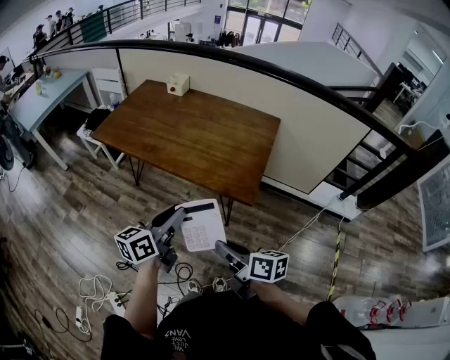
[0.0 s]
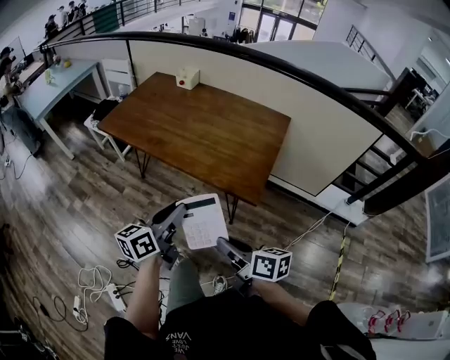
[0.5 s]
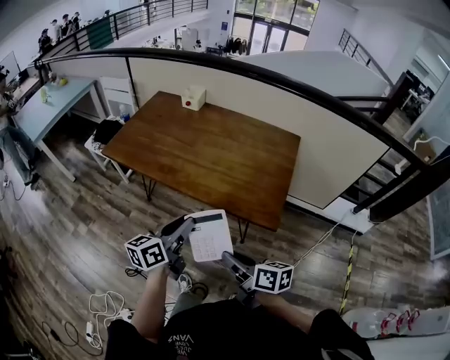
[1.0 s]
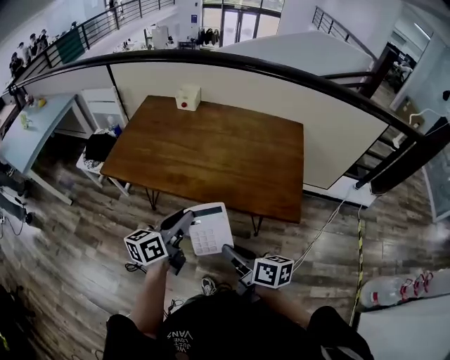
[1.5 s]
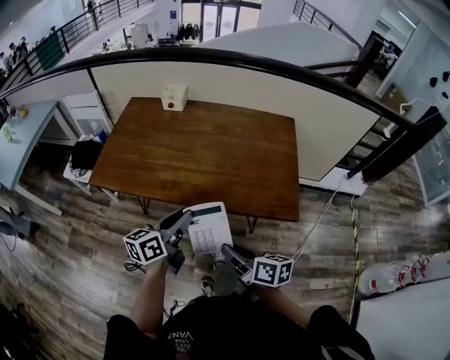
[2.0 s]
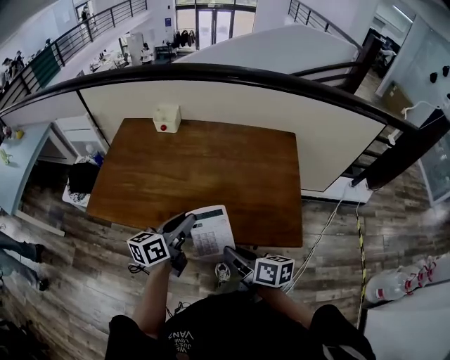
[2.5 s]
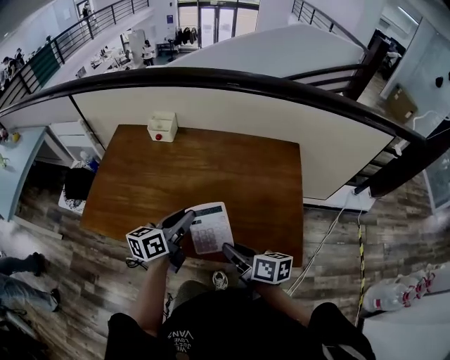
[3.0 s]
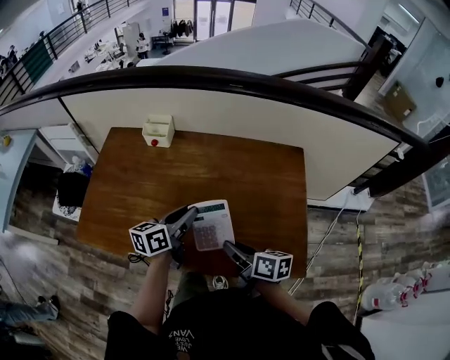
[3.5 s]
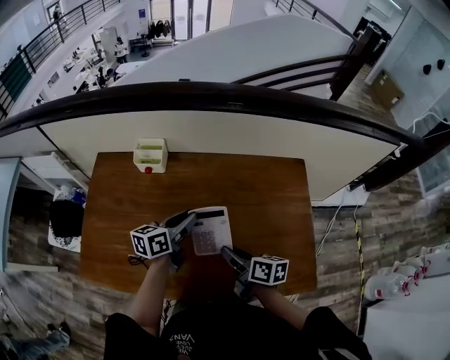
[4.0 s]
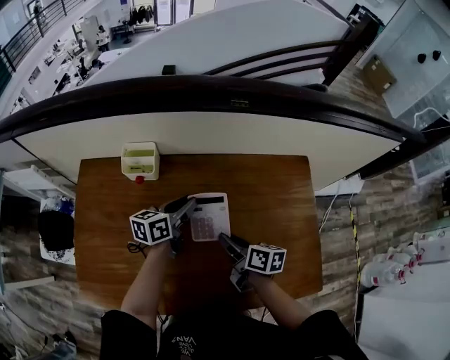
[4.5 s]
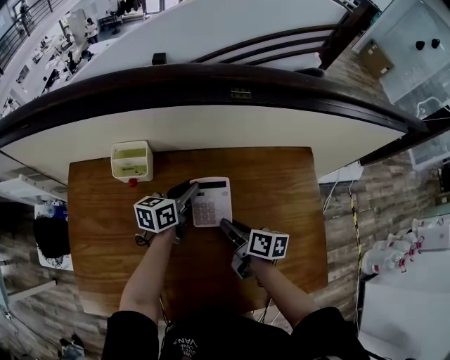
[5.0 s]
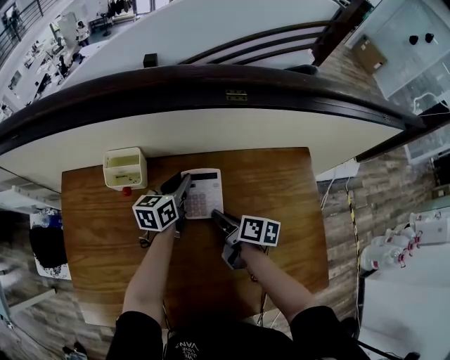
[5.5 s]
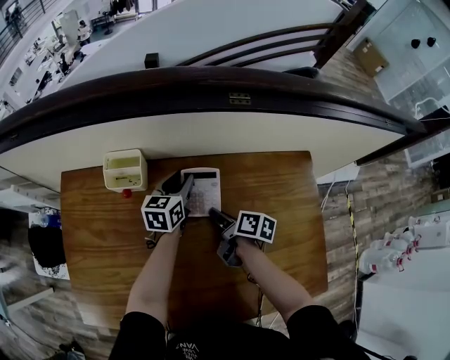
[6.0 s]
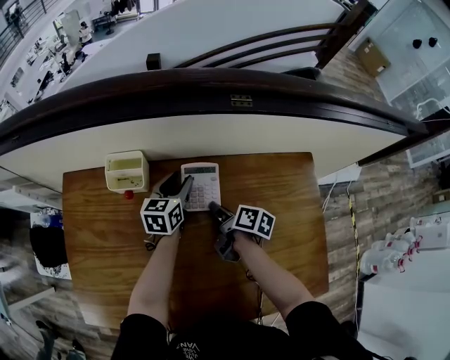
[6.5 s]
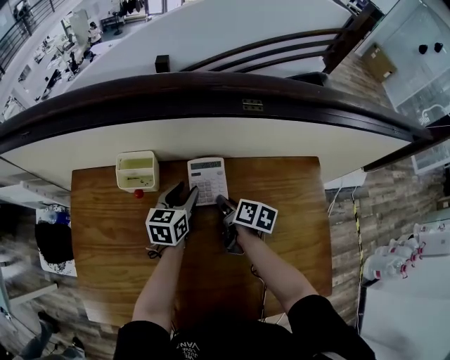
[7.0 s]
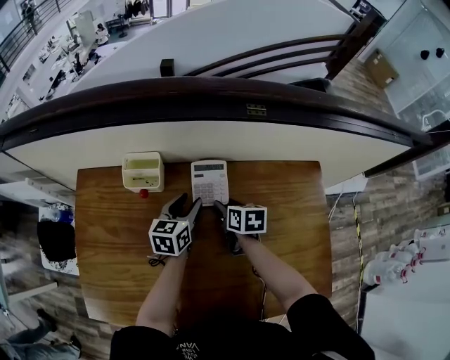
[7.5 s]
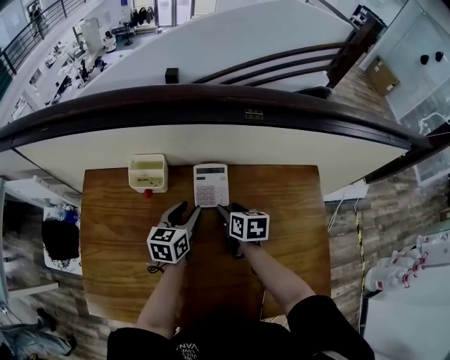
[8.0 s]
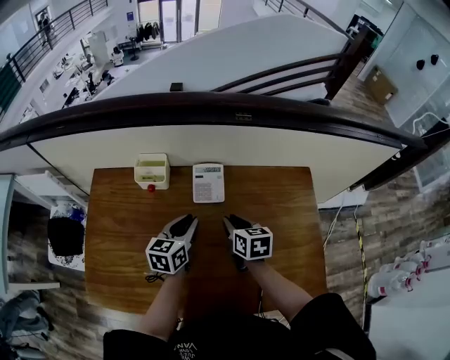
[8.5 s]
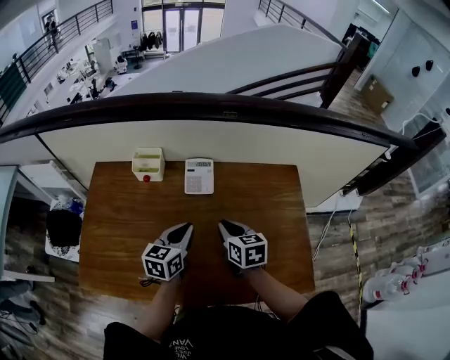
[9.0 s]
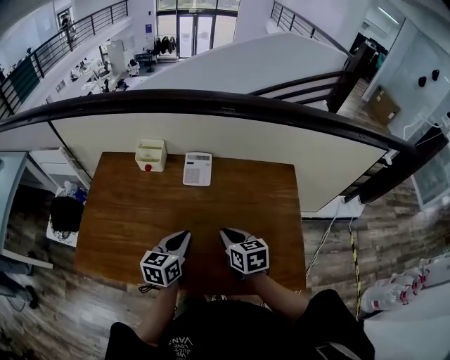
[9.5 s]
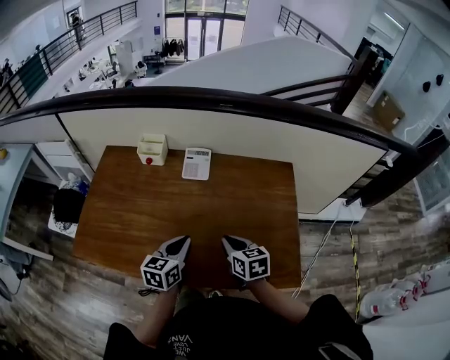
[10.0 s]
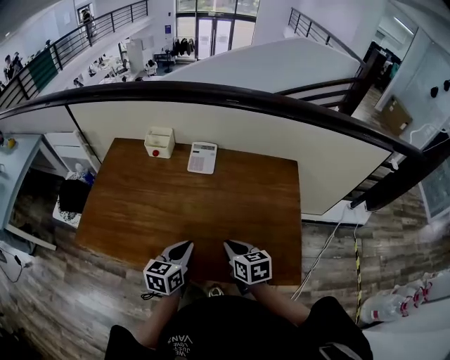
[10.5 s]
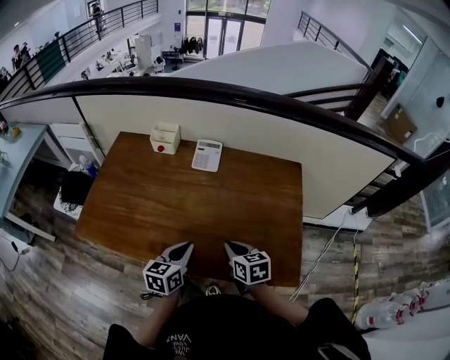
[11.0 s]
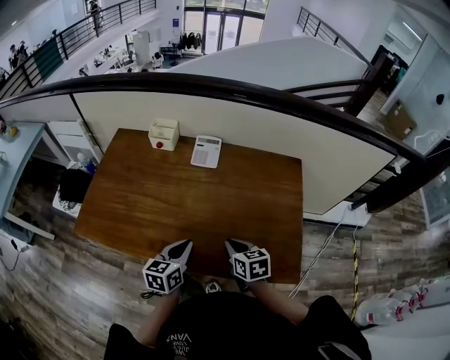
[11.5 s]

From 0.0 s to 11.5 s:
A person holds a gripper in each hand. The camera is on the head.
From 0.0 s to 2.0 s: The left gripper travels forward and to the left by approximately 25 cm; the right gripper travels to the left and forward by roughly 25 cm.
From 2.0 s to 4.0 s: The two grippers go approximately 35 cm forward.
From 4.0 s to 6.0 s: The two grippers go roughly 25 cm forward and downward. The right gripper changes its angle by approximately 20 degrees. The left gripper turns by about 20 degrees.
From 6.0 s to 7.5 s: The right gripper changes its angle by approximately 40 degrees. The left gripper shifts roughly 5 cm backward.
From 7.5 s to 9.5 s: The left gripper is displaced backward by some 25 cm, and closes up. Meanwhile the right gripper is displaced backward and upward by roughly 25 cm, swivels some 20 degrees, and closes its fingers.
From 9.5 s to 11.5 s: The grippers both shift backward by approximately 10 cm.

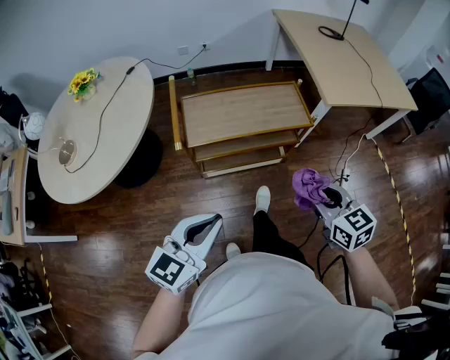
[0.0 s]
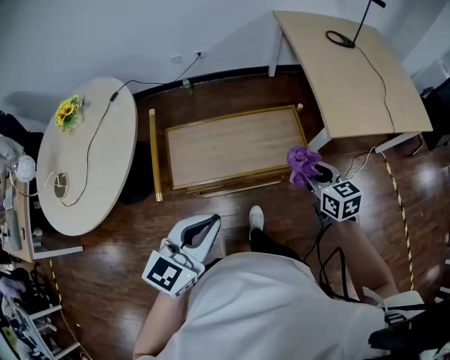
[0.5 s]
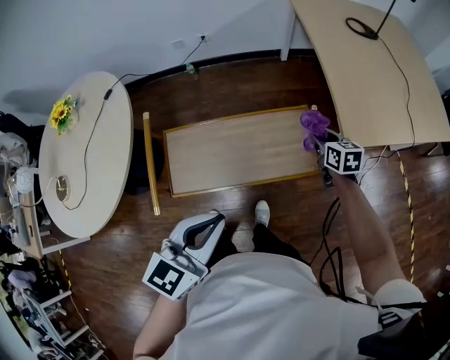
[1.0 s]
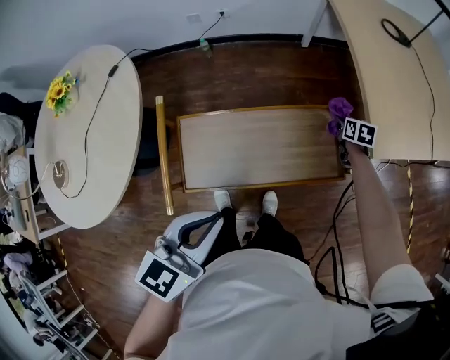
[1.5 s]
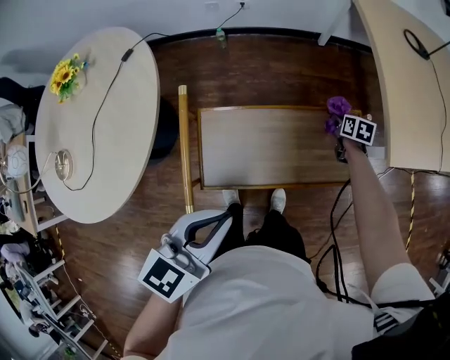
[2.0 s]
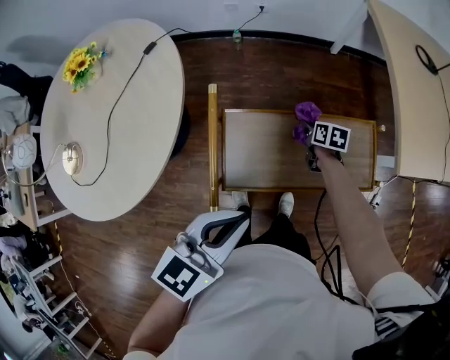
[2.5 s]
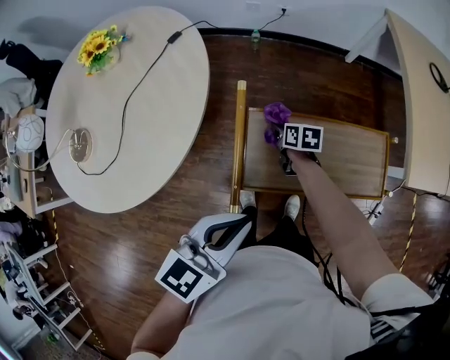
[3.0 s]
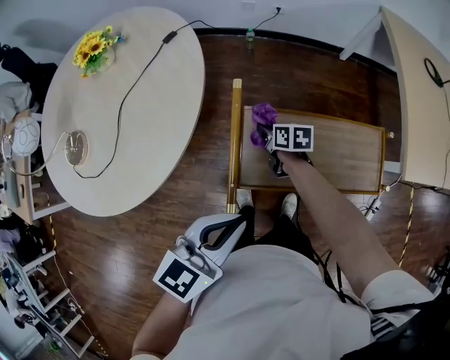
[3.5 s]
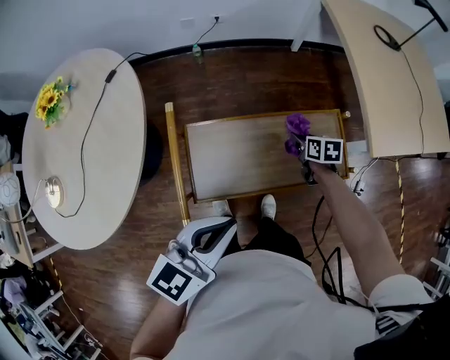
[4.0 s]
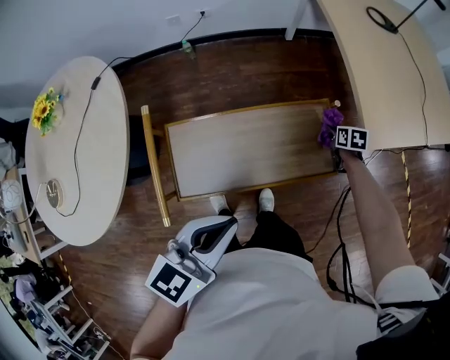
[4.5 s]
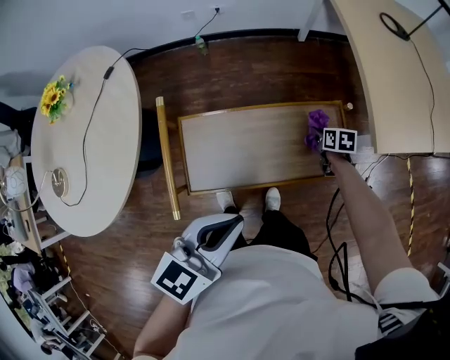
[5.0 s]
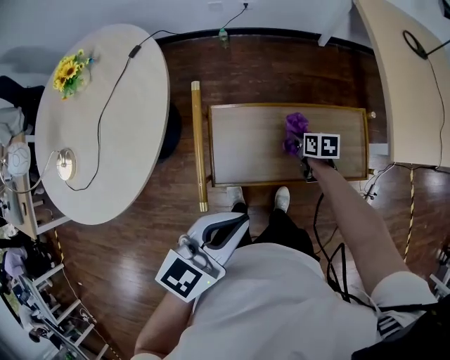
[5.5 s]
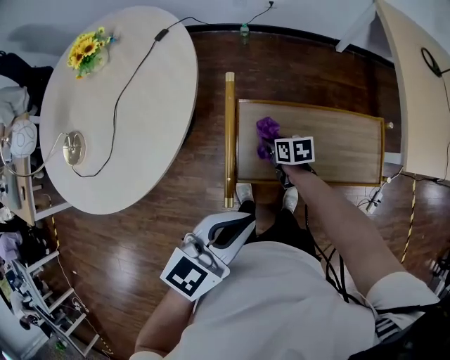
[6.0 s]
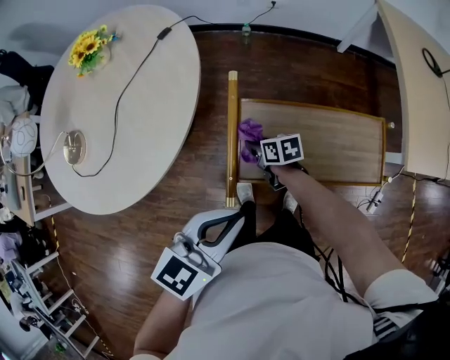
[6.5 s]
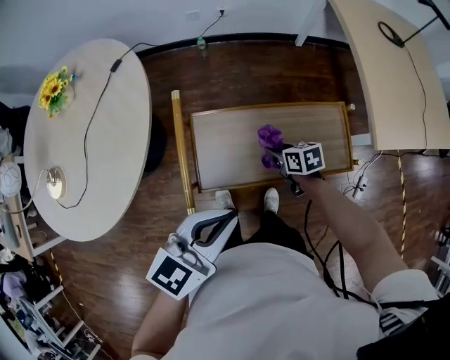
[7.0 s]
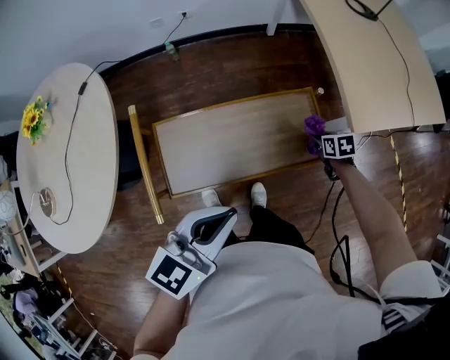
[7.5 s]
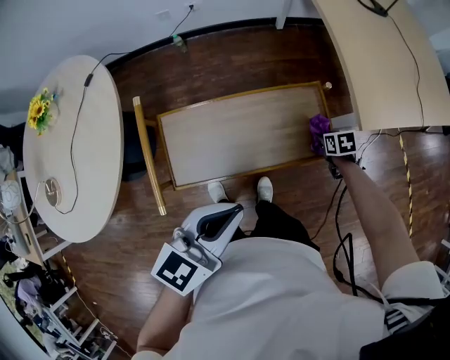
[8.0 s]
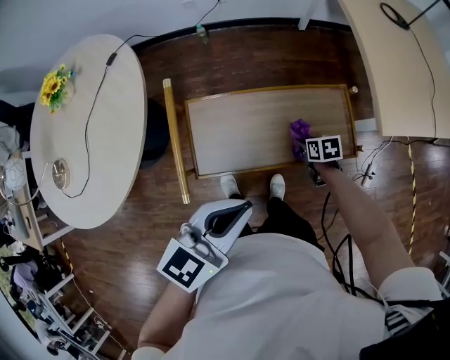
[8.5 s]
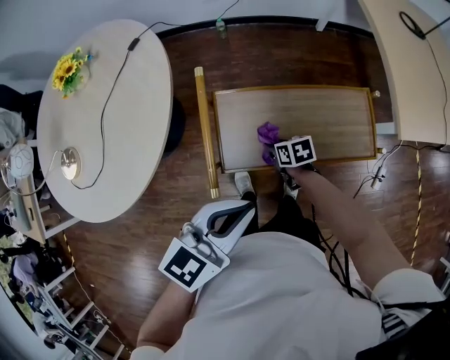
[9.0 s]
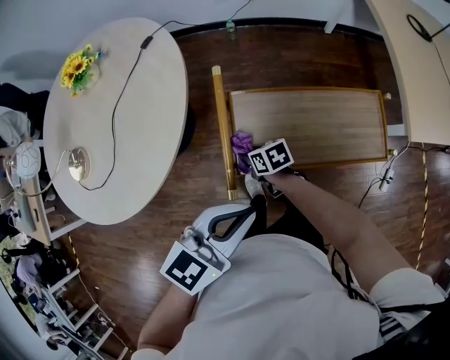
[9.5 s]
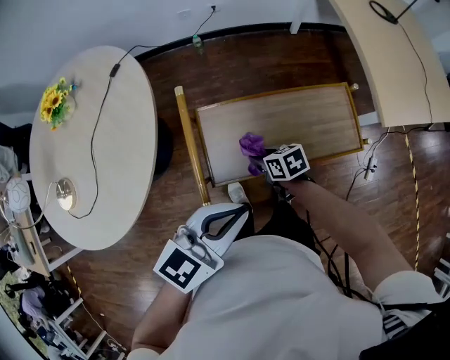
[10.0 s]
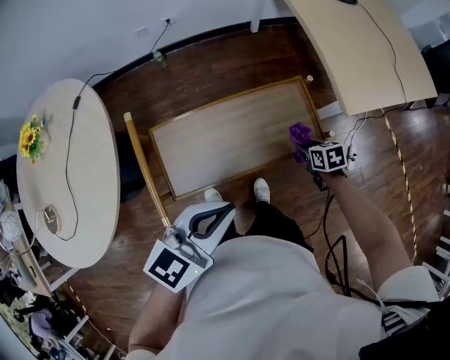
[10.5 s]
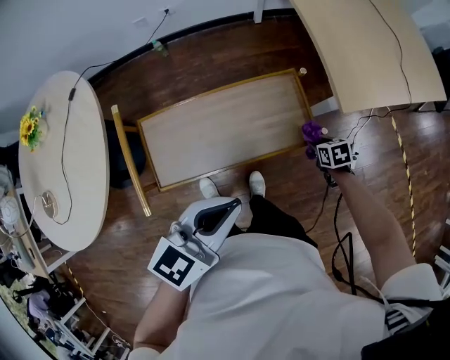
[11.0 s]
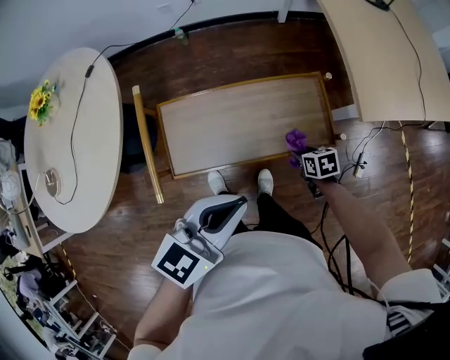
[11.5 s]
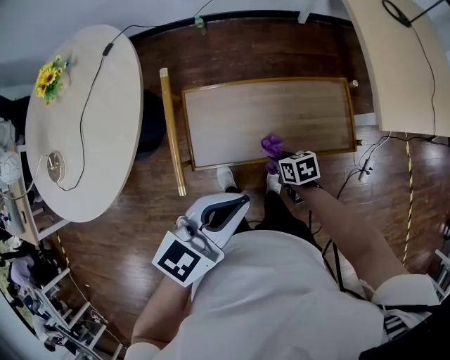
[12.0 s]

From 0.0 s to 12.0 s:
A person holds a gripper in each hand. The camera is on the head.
From 0.0 s to 2.0 s: The left gripper shifts about 30 cm forward, while the right gripper is displaced forward and downward by approximately 60 cm, and turns by about 40 degrees.
From 2.0 s to 4.0 s: The right gripper is displaced backward by about 10 cm, and reaches approximately 40 cm to the left, then returns, while the left gripper reaches approximately 10 cm to the left, then returns.
From 4.0 s to 6.0 s: The right gripper changes place by some 30 cm, and changes its angle by roughly 20 degrees. The left gripper changes place by about 10 cm.
From 6.0 s to 8.0 s: The left gripper ends up about 20 cm from where it was, while the right gripper ends up about 50 cm from where it was, and rotates about 20 degrees.
From 8.0 s to 10.0 s: The right gripper changes place by approximately 40 cm, and changes its angle by some 30 degrees; the left gripper moves roughly 15 cm.
From 10.0 s to 12.0 s: The left gripper travels to the right by some 10 cm. The right gripper reaches some 40 cm to the right, then returns.

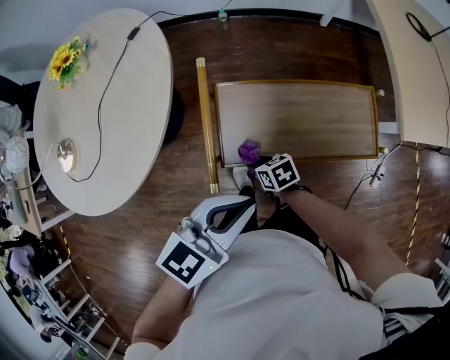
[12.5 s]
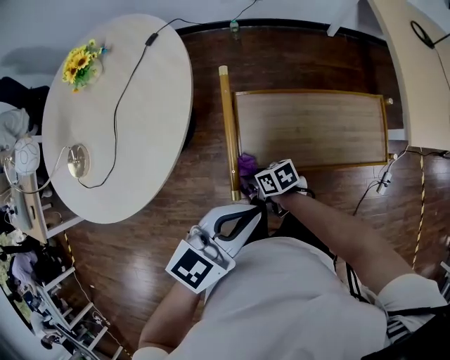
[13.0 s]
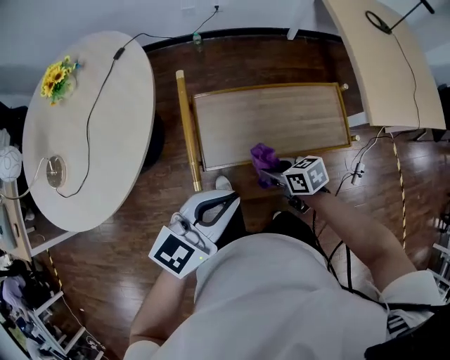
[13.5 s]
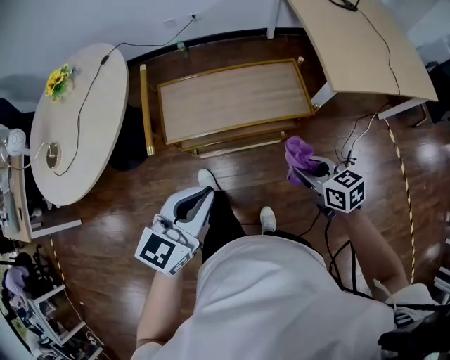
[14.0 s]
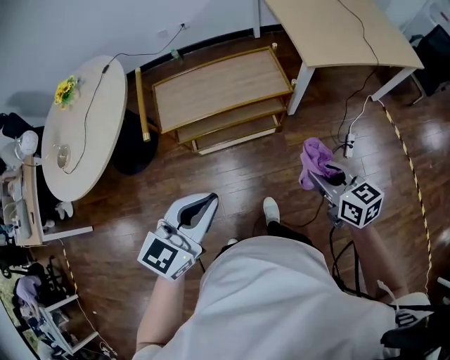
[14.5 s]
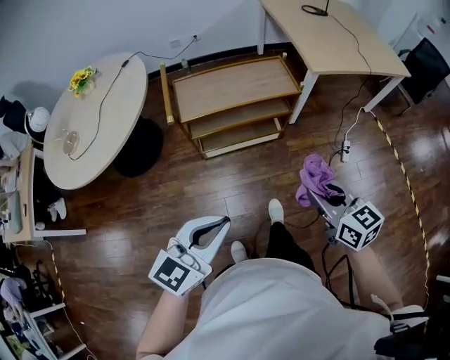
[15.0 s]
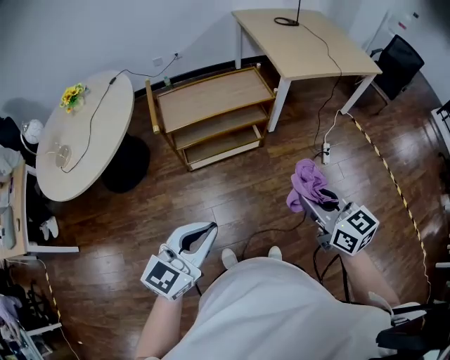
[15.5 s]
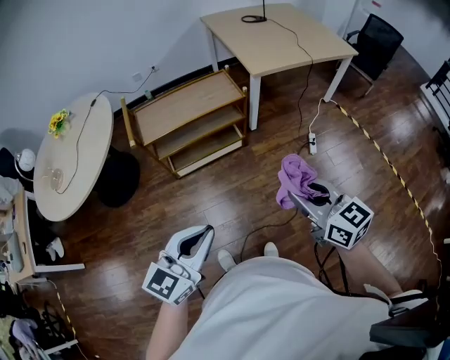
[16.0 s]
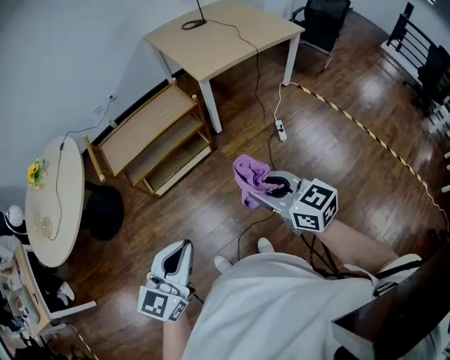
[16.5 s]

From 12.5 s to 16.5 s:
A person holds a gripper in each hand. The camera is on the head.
From 12.5 s to 14.5 s: The left gripper changes place by some 35 cm. The right gripper shifts by some 60 cm, and swivels some 40 degrees.
From 14.5 s to 16.5 s: The right gripper travels backward and upward by some 25 cm, while the left gripper shifts approximately 20 cm backward.
